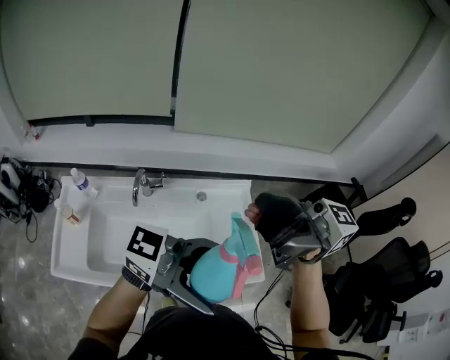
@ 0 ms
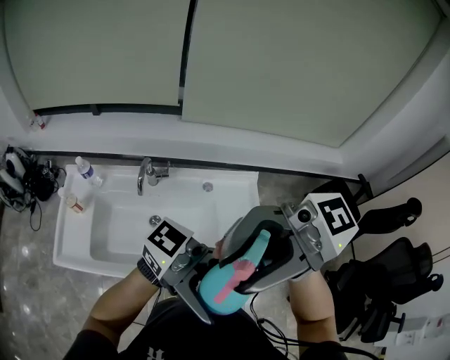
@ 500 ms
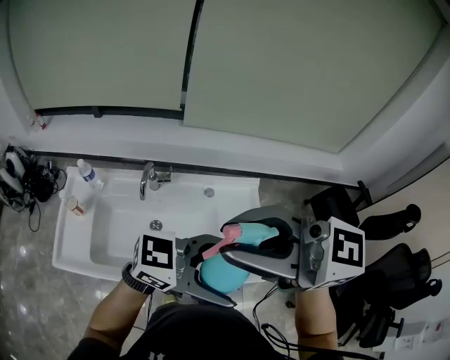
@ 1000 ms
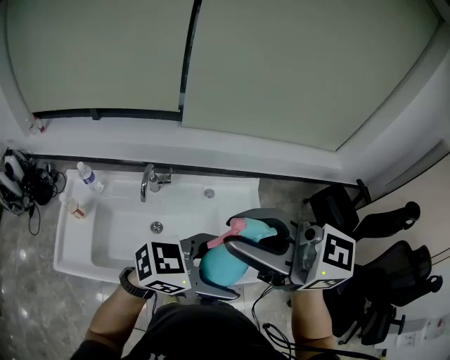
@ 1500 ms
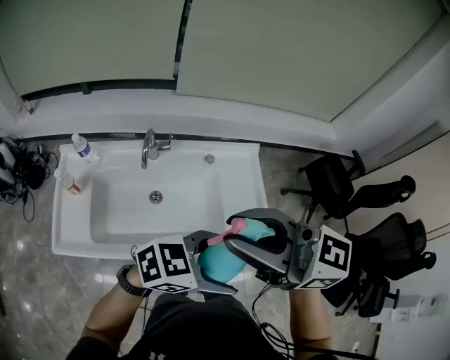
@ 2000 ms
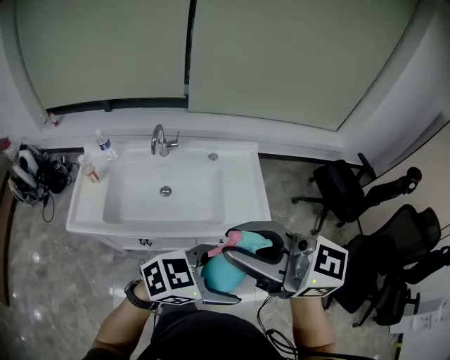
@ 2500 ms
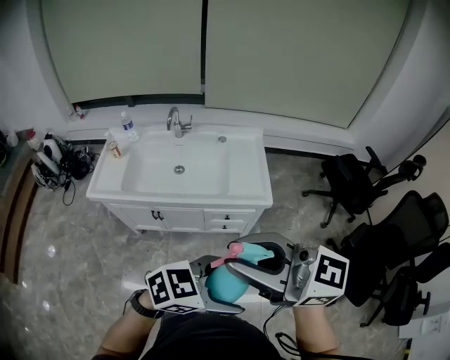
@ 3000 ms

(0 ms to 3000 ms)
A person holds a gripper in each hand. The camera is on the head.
0 ms - 1500 ms: The left gripper heads downward, covering roughly 5 cm, and rotates roughly 30 degrees. The right gripper changes place by roughly 10 cm, swivels approximately 30 degrees, and closes up.
1500 ms - 3000 ms: The pair of grippers is taken some 50 cm.

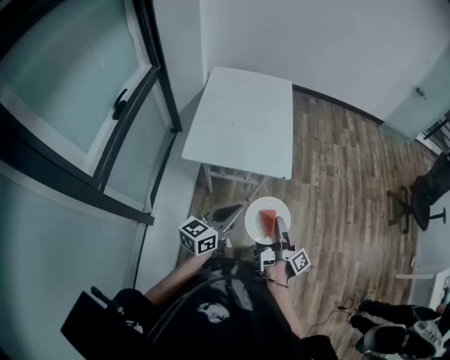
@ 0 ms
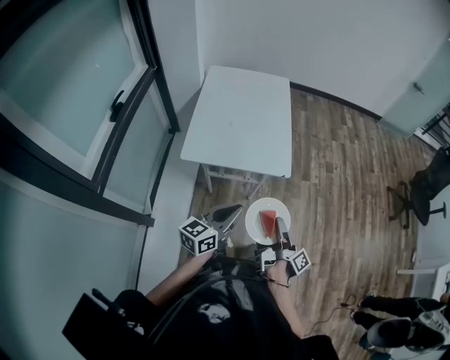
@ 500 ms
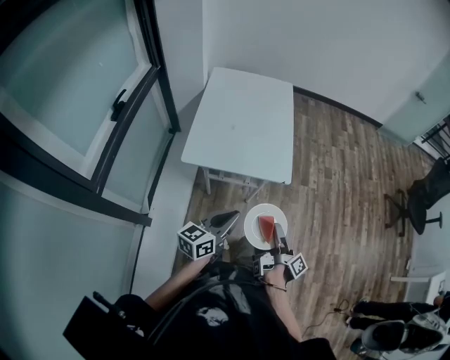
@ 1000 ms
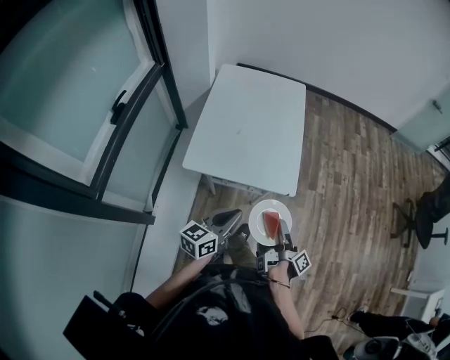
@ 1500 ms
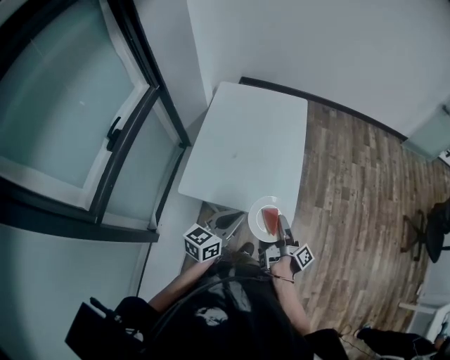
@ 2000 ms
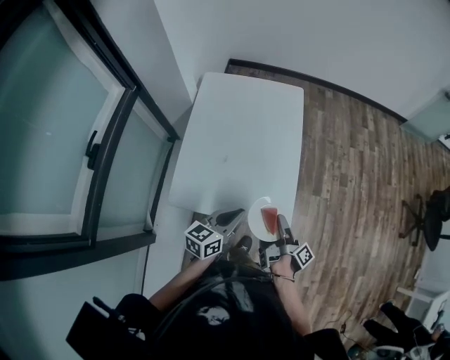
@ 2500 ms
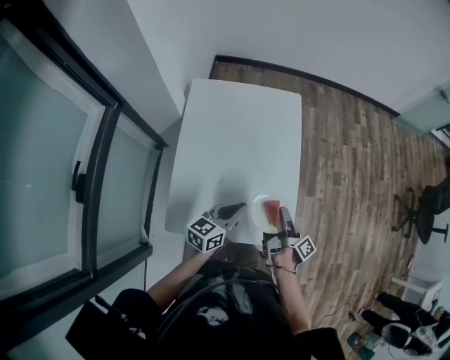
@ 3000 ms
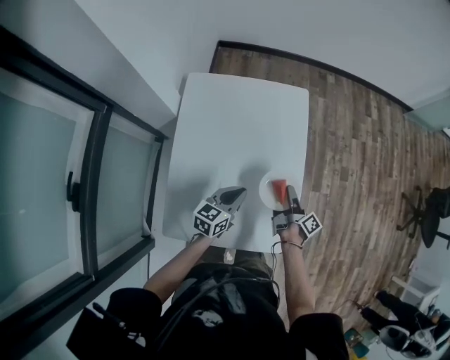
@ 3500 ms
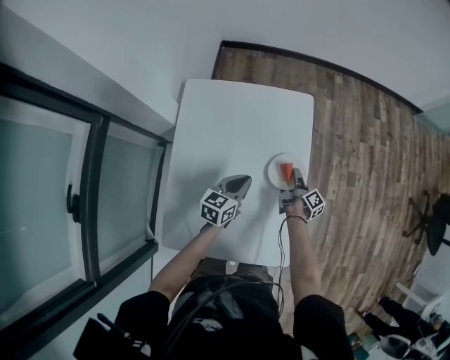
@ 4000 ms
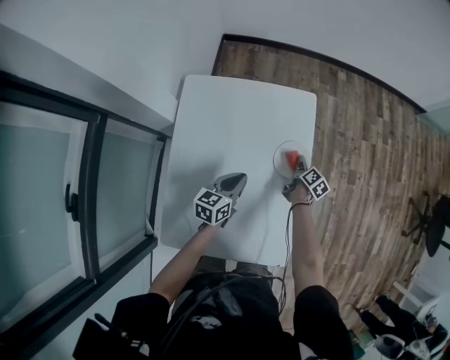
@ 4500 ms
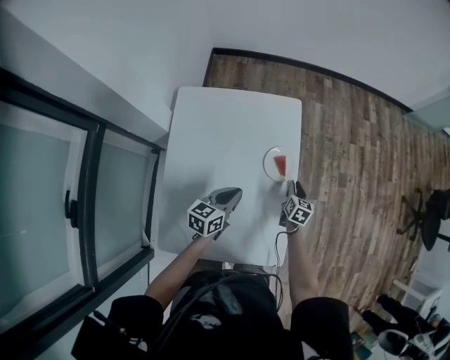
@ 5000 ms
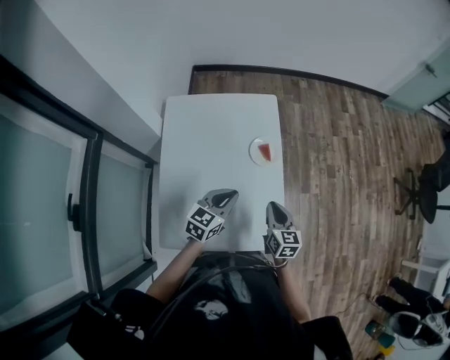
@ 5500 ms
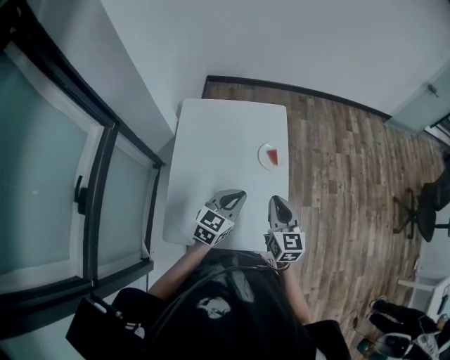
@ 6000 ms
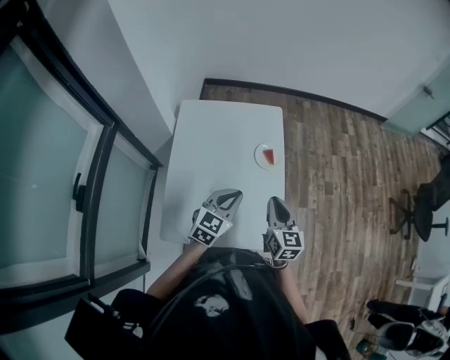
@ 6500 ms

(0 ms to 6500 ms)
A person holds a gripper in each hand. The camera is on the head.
0 ms - 2000 ms: The left gripper shifts by roughly 20 cm.
2000 ms - 4500 ms: The left gripper ends up approximately 50 cm from where it was.
4500 ms - 6500 ms: The left gripper moves approximately 25 cm, and turns by roughly 30 degrees.

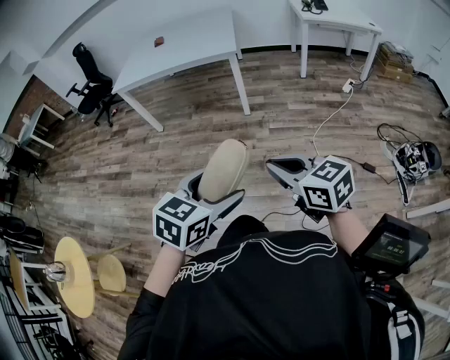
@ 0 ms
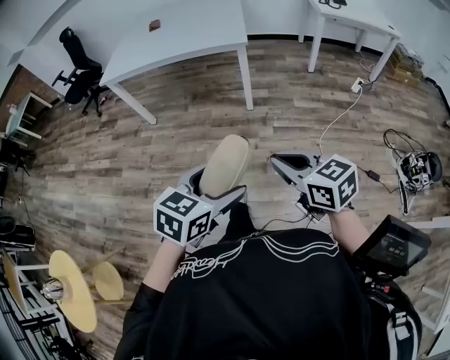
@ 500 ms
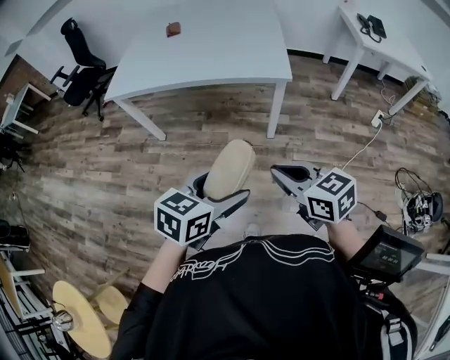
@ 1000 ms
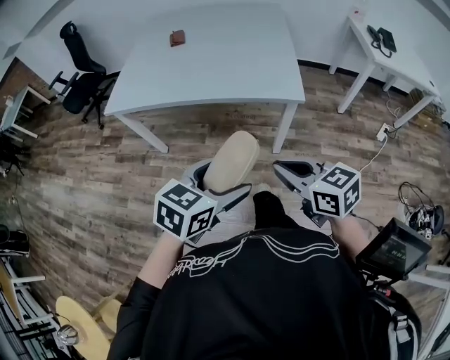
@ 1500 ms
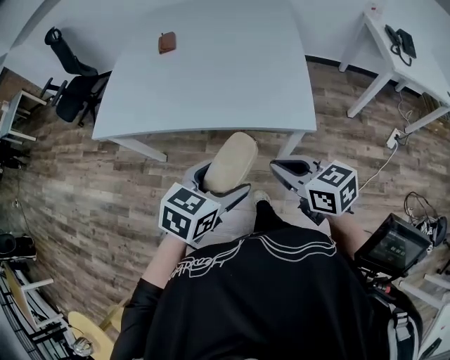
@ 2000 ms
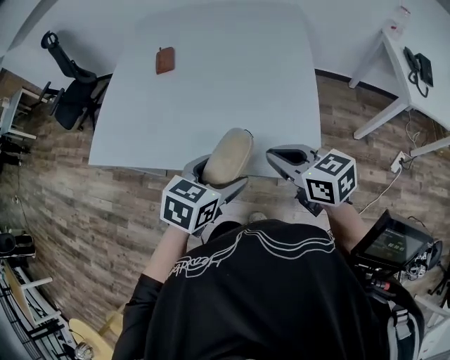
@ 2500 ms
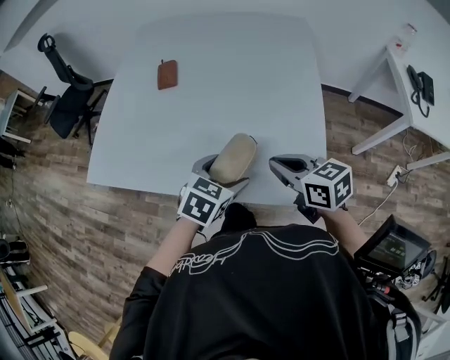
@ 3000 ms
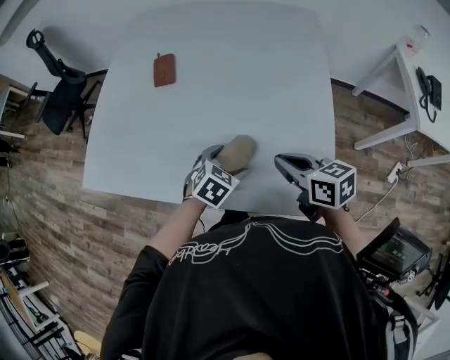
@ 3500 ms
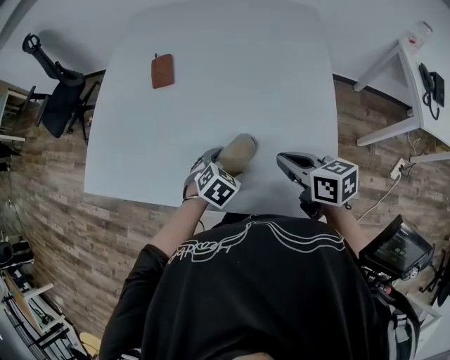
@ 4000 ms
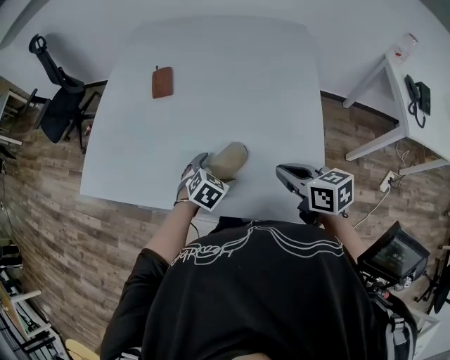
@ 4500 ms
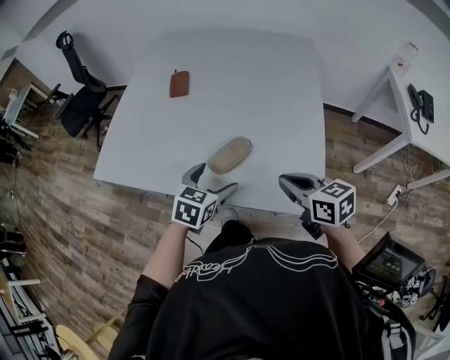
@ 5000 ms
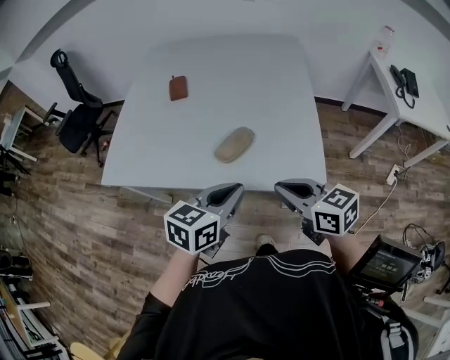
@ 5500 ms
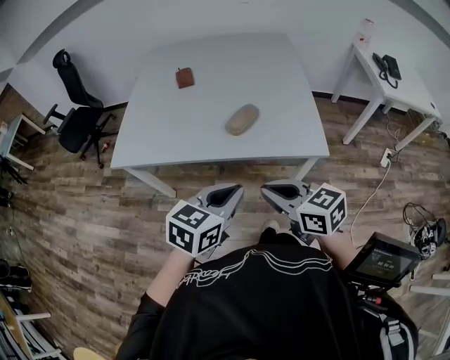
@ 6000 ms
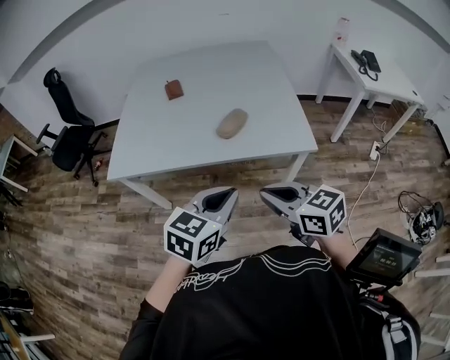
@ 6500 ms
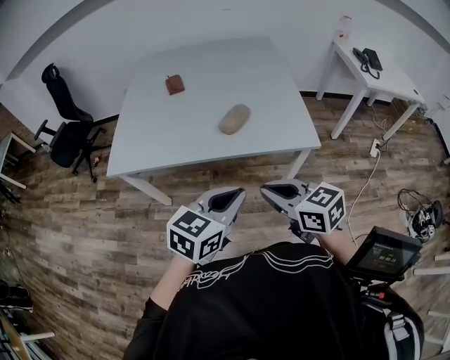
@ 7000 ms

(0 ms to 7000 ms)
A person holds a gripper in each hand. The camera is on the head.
0 ms - 2000 ms: The pair of grippers is taken forward, roughly 70 cm.
2000 ms - 3500 ms: The left gripper shifts approximately 40 cm forward and downward, and changes its angle by roughly 20 degrees; the right gripper moves forward, roughly 35 cm.
3500 ms - 5000 ms: The right gripper heads backward, covering roughly 10 cm. Meanwhile the left gripper moves upward and backward, some 10 cm, and turns by about 20 degrees.
5000 ms - 7000 ms: The left gripper shifts roughly 30 cm backward and upward, turns by roughly 30 degrees, and closes; the right gripper goes approximately 25 cm backward and to the left.

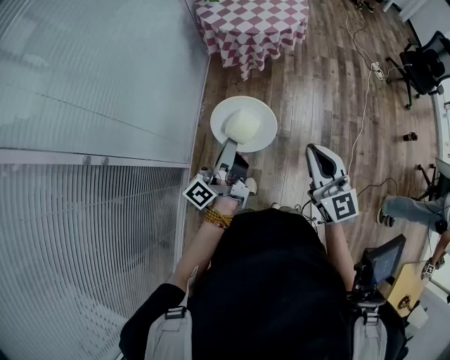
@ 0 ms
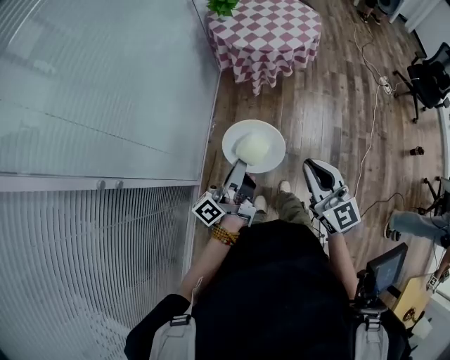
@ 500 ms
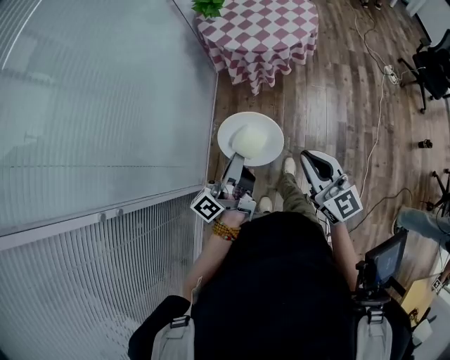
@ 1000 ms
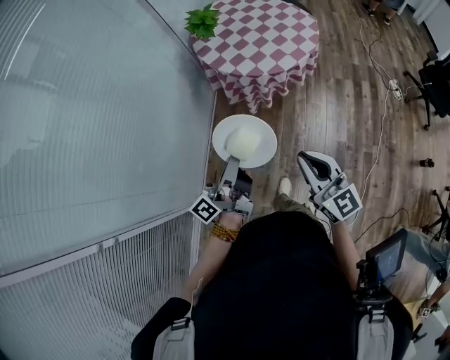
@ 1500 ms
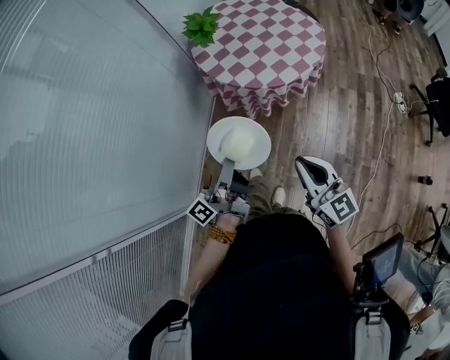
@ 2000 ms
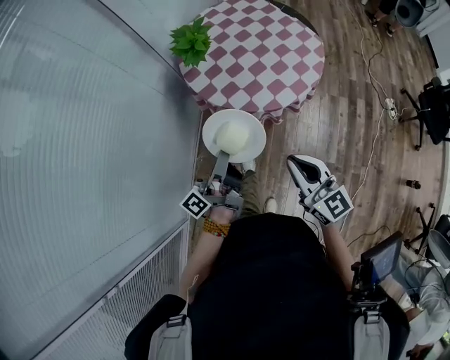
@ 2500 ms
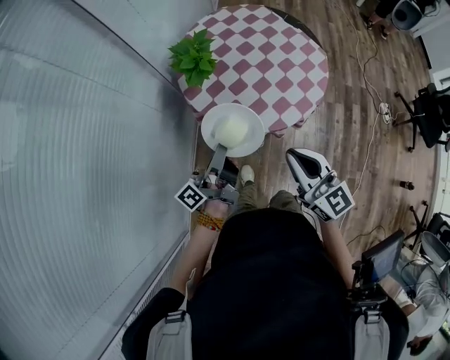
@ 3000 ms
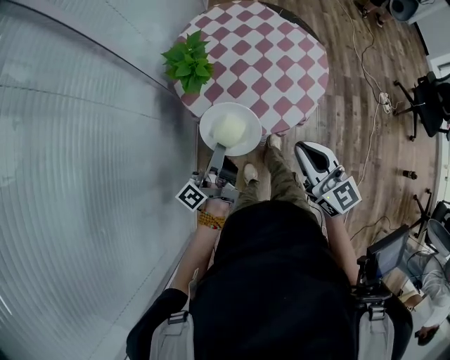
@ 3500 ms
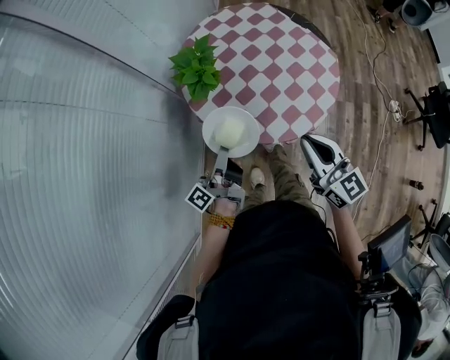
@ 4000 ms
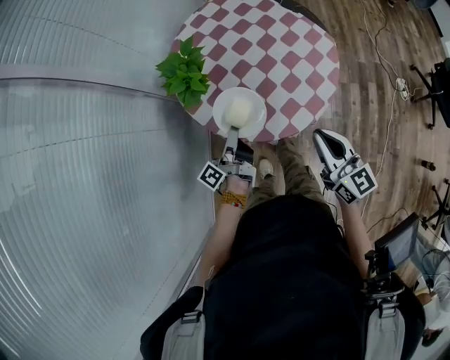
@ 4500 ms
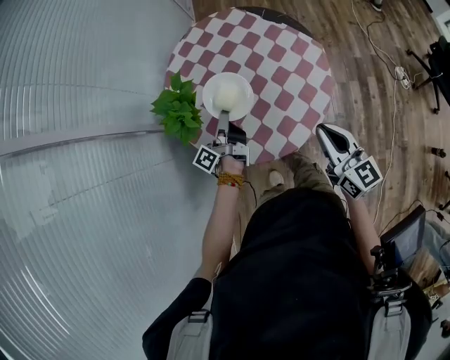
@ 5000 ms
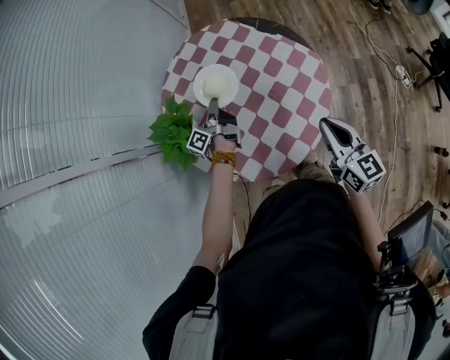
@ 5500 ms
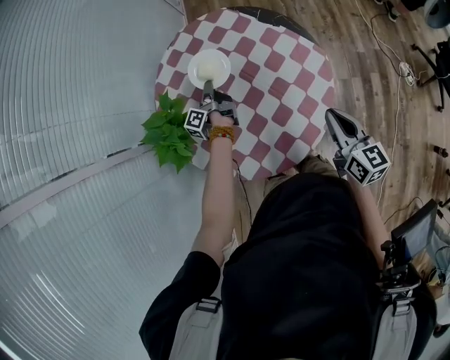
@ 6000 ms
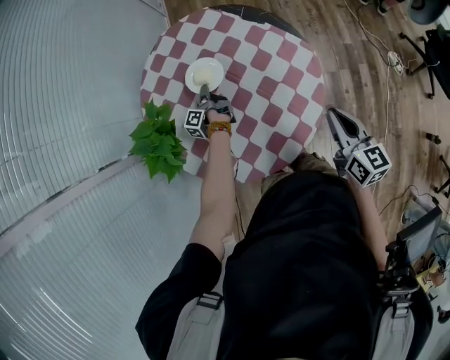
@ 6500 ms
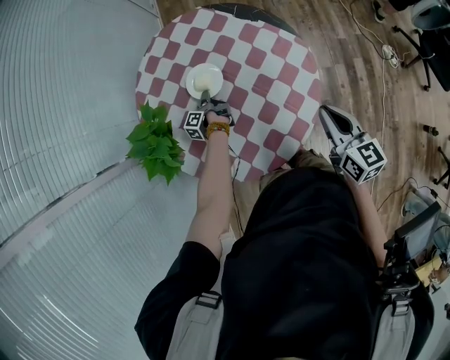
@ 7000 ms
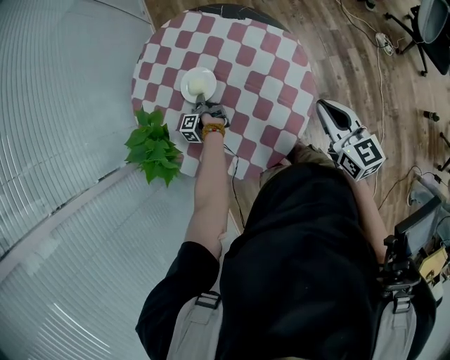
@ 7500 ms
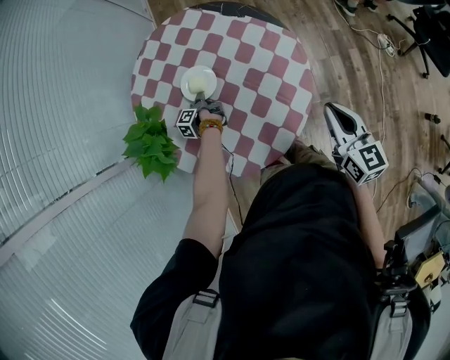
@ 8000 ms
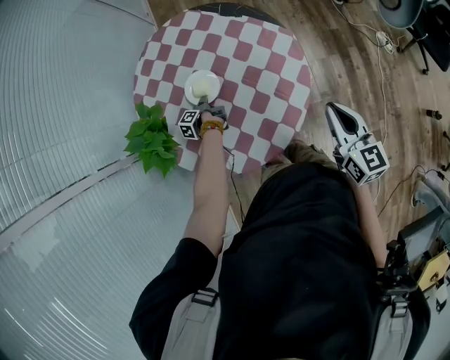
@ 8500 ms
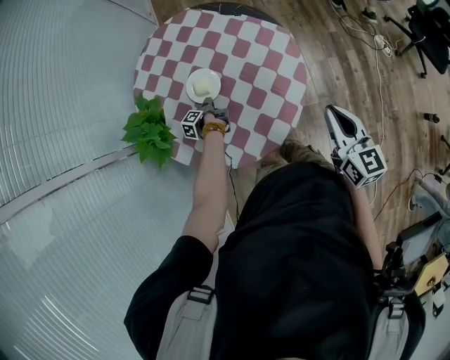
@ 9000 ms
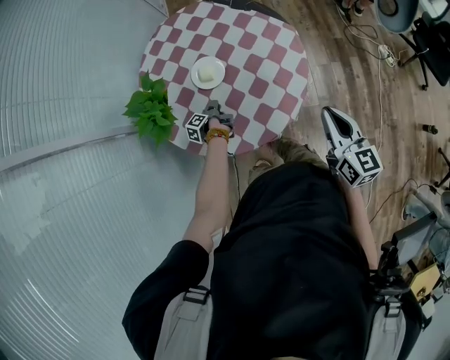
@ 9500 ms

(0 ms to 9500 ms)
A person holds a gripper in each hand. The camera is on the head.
0 ms - 2000 ms: The right gripper ends up about 40 cm from where it was.
2000 ms - 4000 ms: The right gripper shifts by roughly 40 cm.
4000 ms - 5500 ms: The right gripper changes place by about 25 cm, and turns by roughly 20 degrees.
5500 ms - 7500 ms: The right gripper moves about 5 cm.
7500 ms - 9500 ms: The right gripper moves approximately 15 cm.
